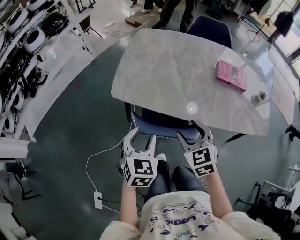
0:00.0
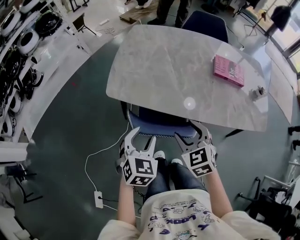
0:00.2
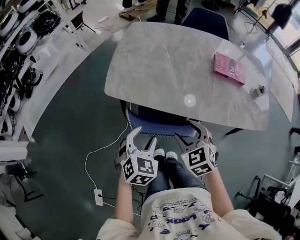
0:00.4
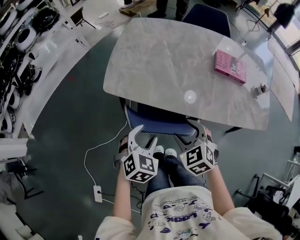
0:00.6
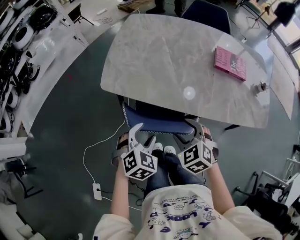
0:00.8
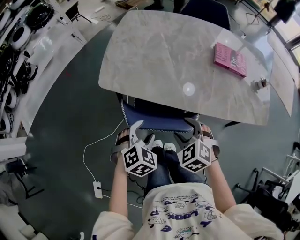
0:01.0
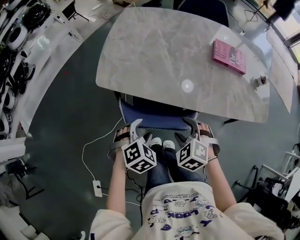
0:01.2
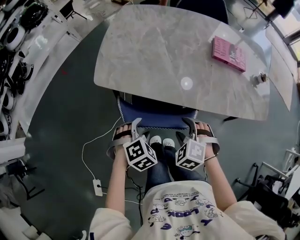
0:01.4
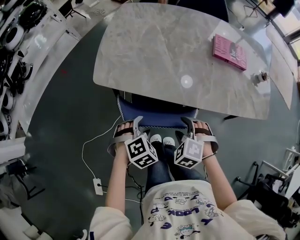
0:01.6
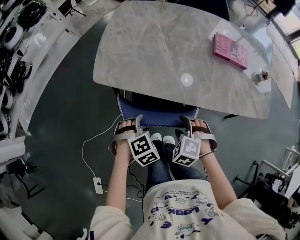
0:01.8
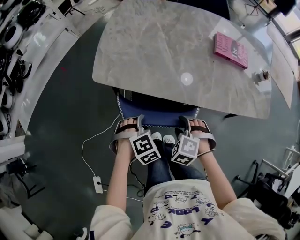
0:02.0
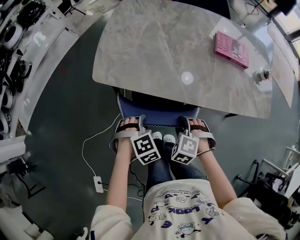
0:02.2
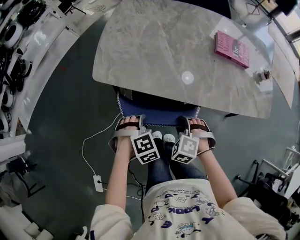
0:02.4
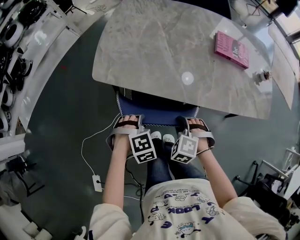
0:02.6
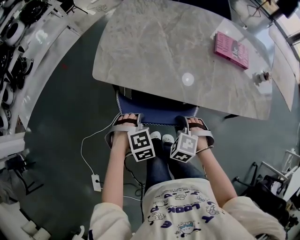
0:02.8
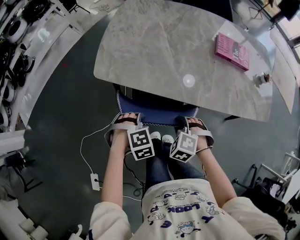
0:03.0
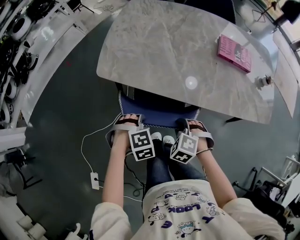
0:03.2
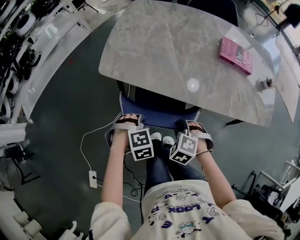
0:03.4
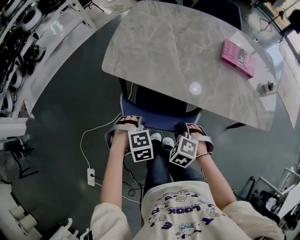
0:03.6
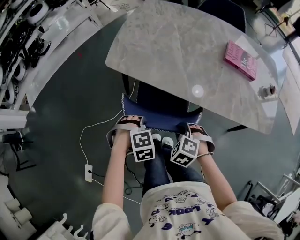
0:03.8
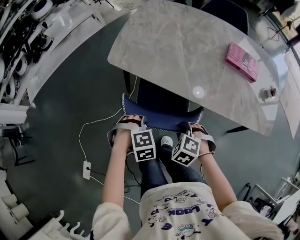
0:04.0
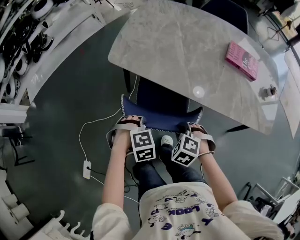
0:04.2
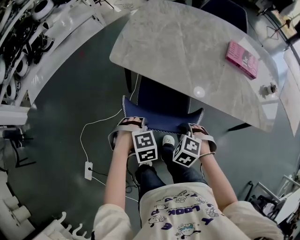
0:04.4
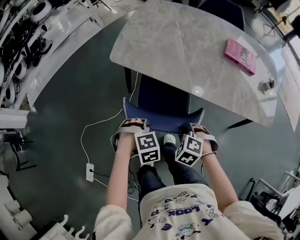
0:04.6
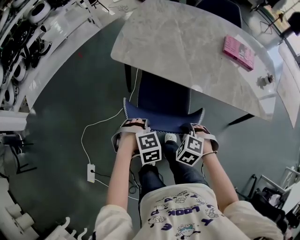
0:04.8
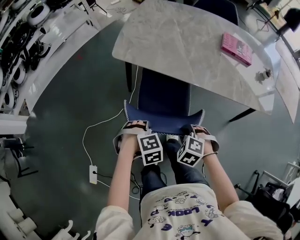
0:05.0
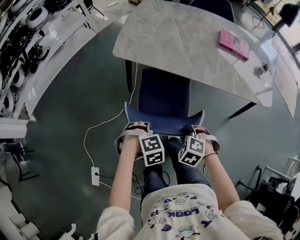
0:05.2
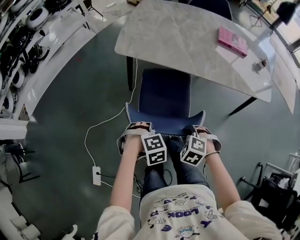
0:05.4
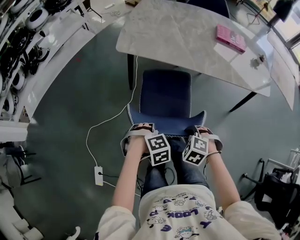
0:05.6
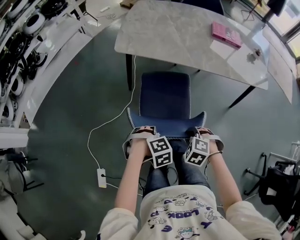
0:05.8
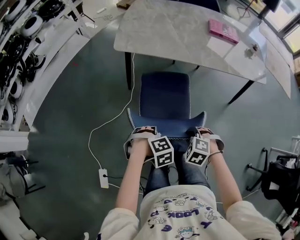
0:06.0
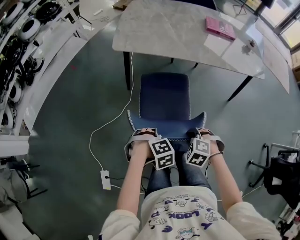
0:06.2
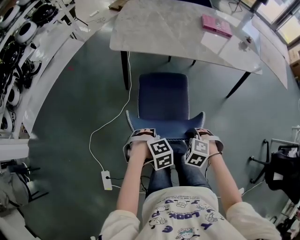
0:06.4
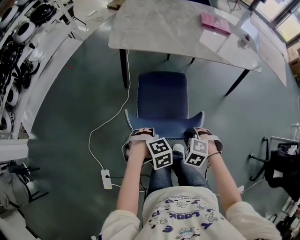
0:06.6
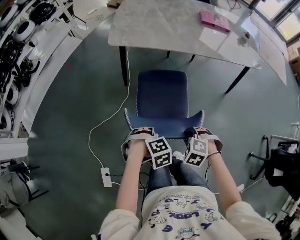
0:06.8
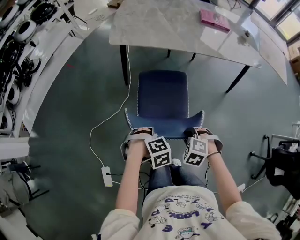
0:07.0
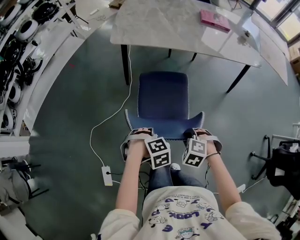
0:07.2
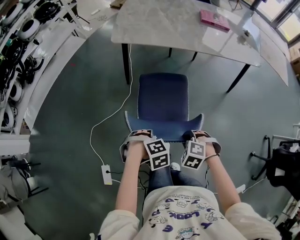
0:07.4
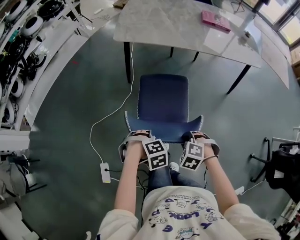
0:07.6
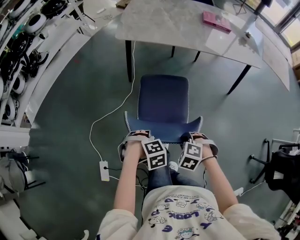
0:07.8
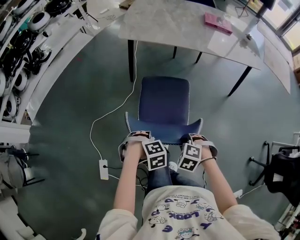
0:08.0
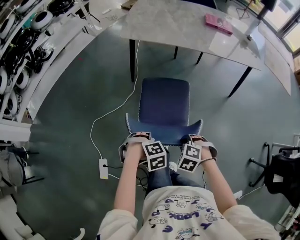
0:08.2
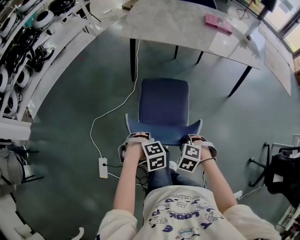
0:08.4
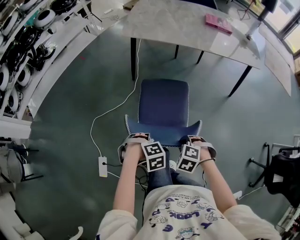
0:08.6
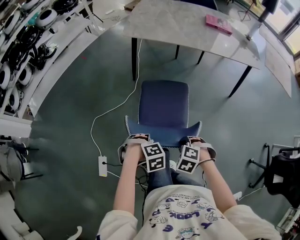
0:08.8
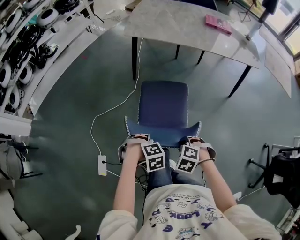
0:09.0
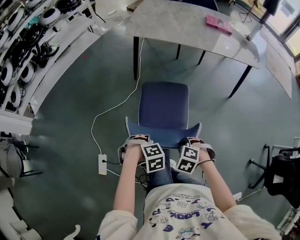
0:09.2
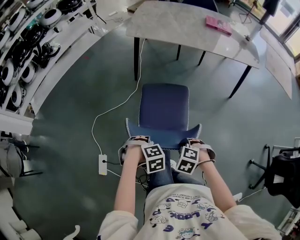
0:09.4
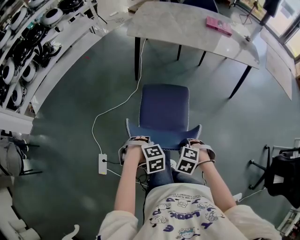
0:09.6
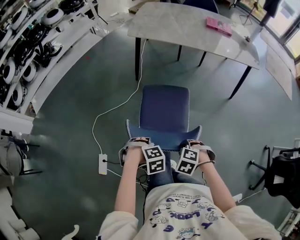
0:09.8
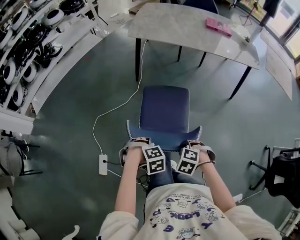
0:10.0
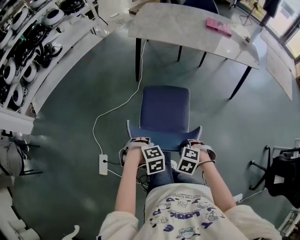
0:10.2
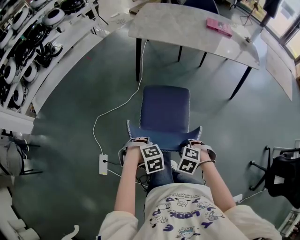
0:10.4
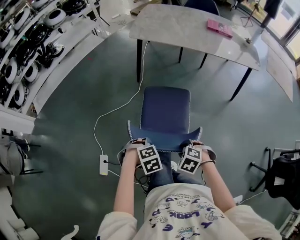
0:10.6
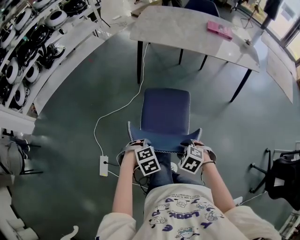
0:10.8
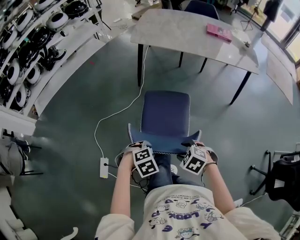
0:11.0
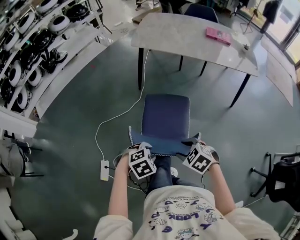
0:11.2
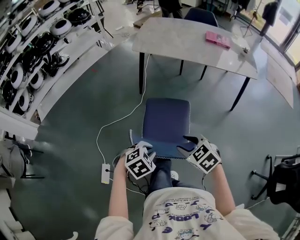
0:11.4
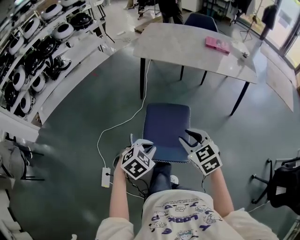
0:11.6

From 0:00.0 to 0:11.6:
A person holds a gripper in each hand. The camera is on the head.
From 0:00.0 to 0:01.4: Both grippers travel together downward, about 15 cm. The left gripper rotates roughly 50 degrees. Meanwhile the right gripper rotates approximately 40 degrees.
From 0:01.4 to 0:02.8: The right gripper closes up, while the left gripper turns by approximately 20 degrees, and closes its fingers.
From 0:02.8 to 0:04.4: The left gripper shifts by approximately 10 cm. The right gripper ends up roughly 10 cm from where it was.
From 0:04.4 to 0:05.8: The left gripper ends up approximately 20 cm from where it was; the right gripper changes place by about 25 cm.
From 0:05.8 to 0:07.2: The left gripper moves approximately 10 cm. Meanwhile the right gripper shifts by approximately 10 cm.
From 0:07.2 to 0:08.8: The left gripper changes place by about 15 cm. The right gripper ends up some 15 cm from where it was.
From 0:08.8 to 0:10.2: The left gripper moves approximately 5 cm. The right gripper shifts by some 5 cm.
From 0:10.2 to 0:11.6: The grippers both shift upward by roughly 15 cm. The right gripper tilts its fingers about 40 degrees upward; the left gripper tilts its fingers some 30 degrees upward.

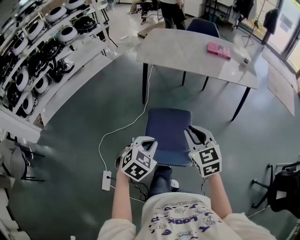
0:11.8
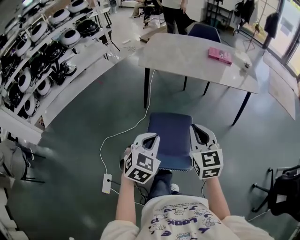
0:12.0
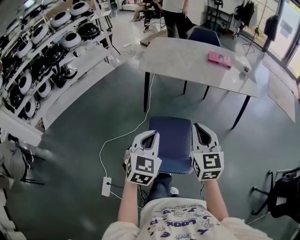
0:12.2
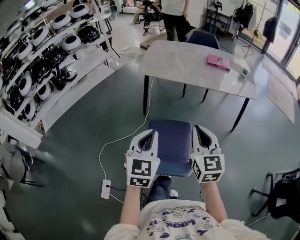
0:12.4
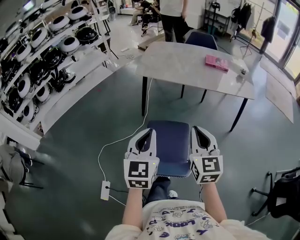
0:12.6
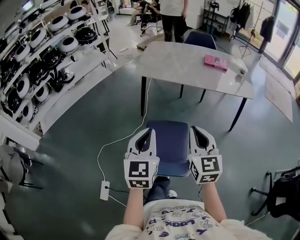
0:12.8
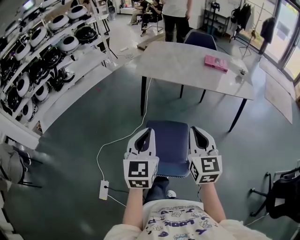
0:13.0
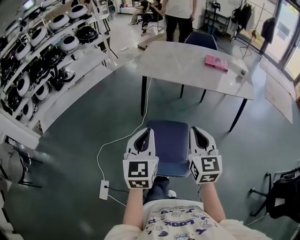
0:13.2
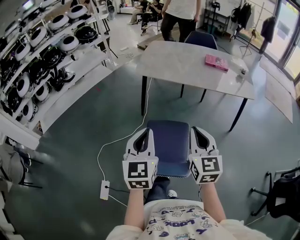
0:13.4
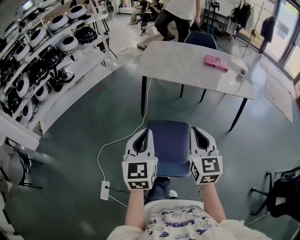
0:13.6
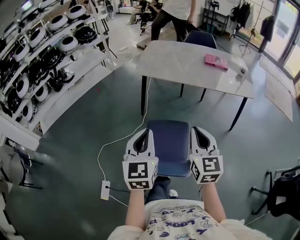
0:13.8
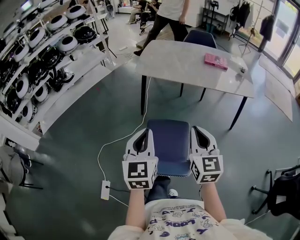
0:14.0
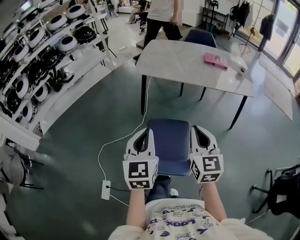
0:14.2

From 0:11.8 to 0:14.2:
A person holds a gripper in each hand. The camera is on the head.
From 0:11.8 to 0:13.0: The left gripper moves upward, about 15 cm, and points its fingers about 40 degrees further upward, while the right gripper moves upward, about 10 cm, and changes its angle by approximately 20 degrees.
From 0:13.0 to 0:14.2: The grippers move only a little.

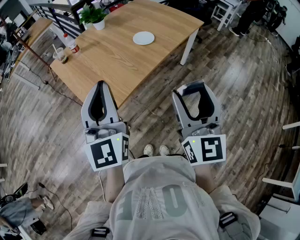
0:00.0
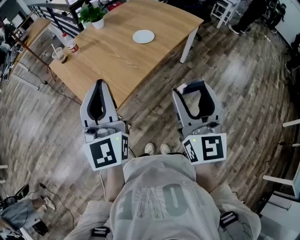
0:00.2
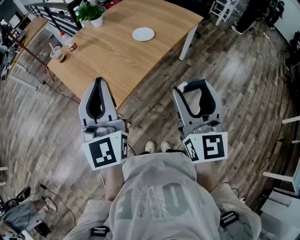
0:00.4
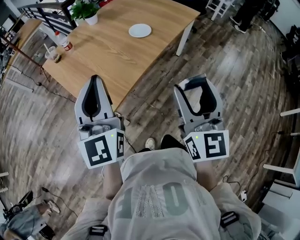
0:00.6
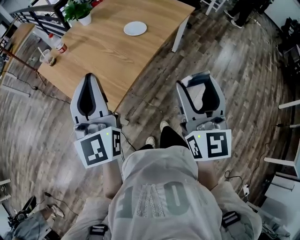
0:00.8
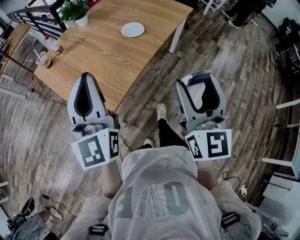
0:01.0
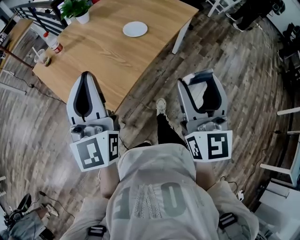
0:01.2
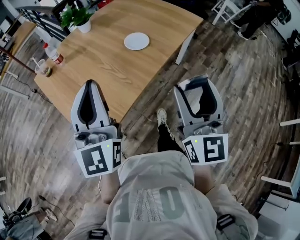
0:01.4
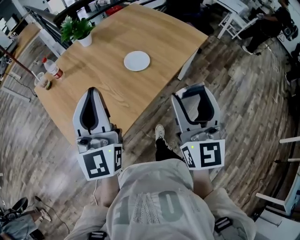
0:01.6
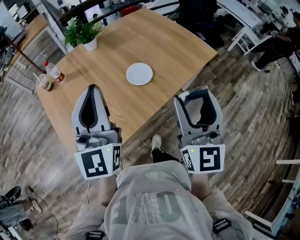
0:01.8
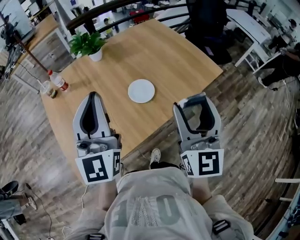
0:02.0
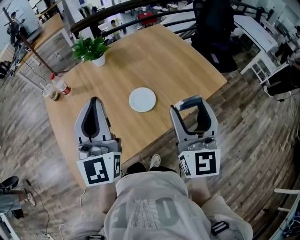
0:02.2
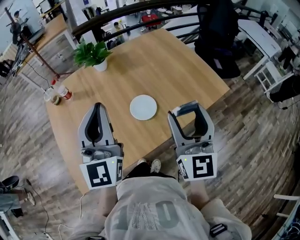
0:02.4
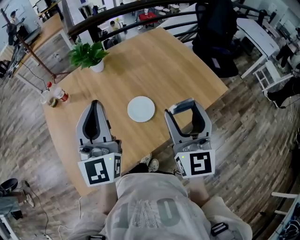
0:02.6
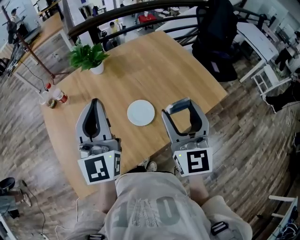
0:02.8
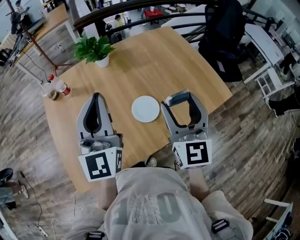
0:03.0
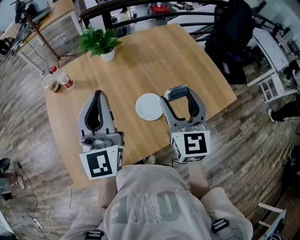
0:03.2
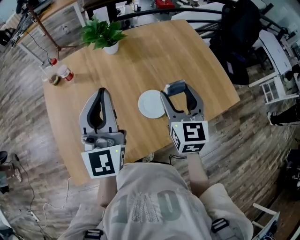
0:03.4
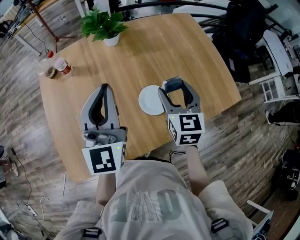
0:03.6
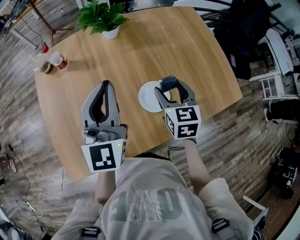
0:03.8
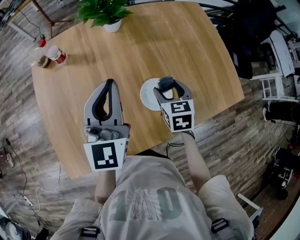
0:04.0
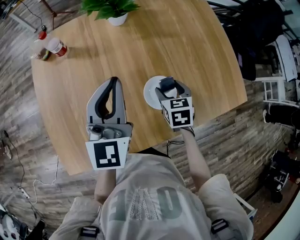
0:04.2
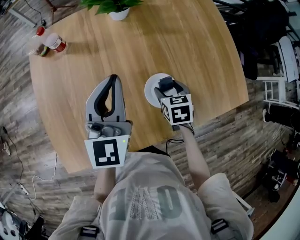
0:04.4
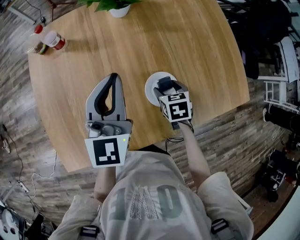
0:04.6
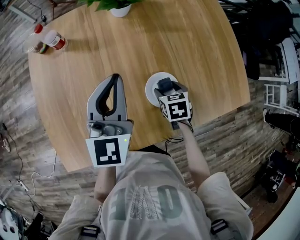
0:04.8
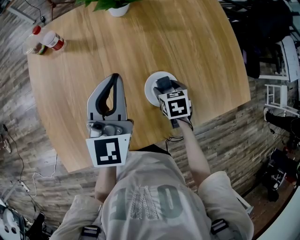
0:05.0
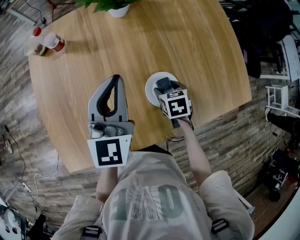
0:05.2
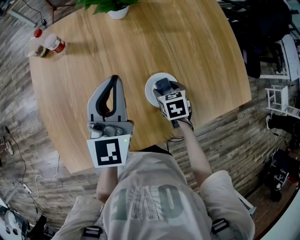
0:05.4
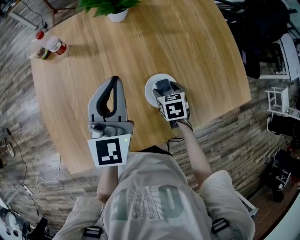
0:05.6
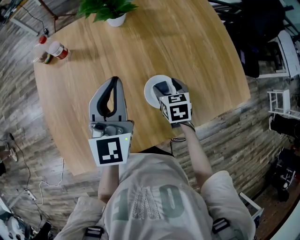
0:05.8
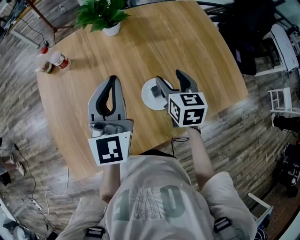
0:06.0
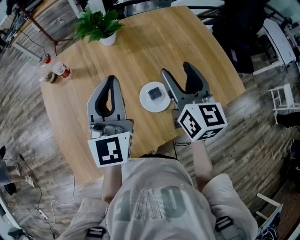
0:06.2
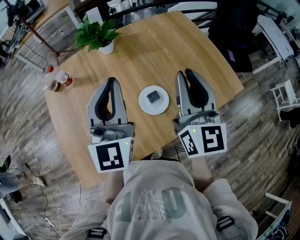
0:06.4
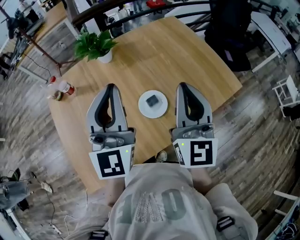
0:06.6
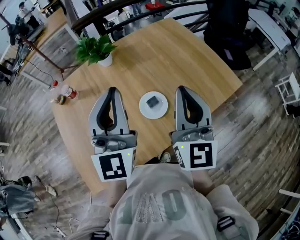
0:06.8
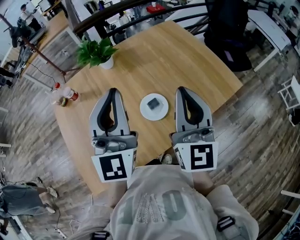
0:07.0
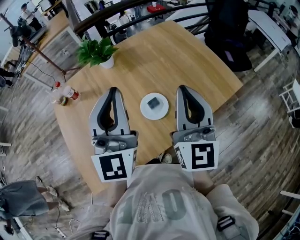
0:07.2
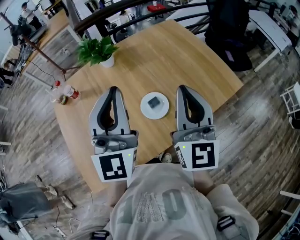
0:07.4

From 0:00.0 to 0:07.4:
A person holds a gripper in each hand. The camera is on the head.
From 0:00.0 to 0:01.4: Both grippers travel together forward, approximately 15 cm.
From 0:01.4 to 0:03.0: The grippers both shift forward by about 30 cm. The right gripper swivels roughly 30 degrees. Meanwhile the left gripper swivels approximately 20 degrees.
From 0:03.0 to 0:04.4: The left gripper travels downward and forward by roughly 15 cm; the right gripper heads downward, covering approximately 30 cm, and points its fingers about 50 degrees further downward.
From 0:04.4 to 0:06.0: The right gripper shifts about 10 cm upward, and turns by roughly 20 degrees.
From 0:06.0 to 0:07.4: The right gripper heads upward and backward, covering some 25 cm, angles its fingers upward, by approximately 40 degrees, and closes its fingers; the left gripper heads upward, to the right and backward, covering approximately 15 cm, and turns by approximately 20 degrees.

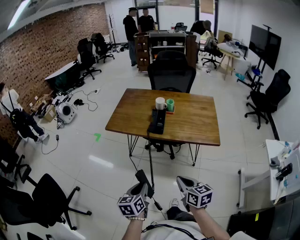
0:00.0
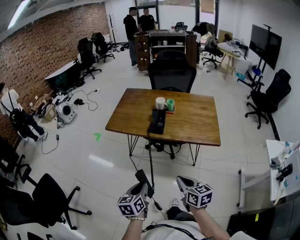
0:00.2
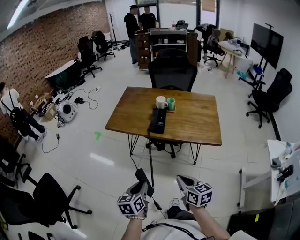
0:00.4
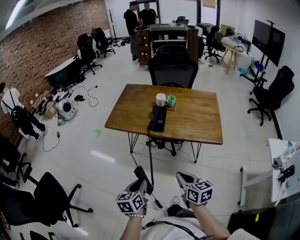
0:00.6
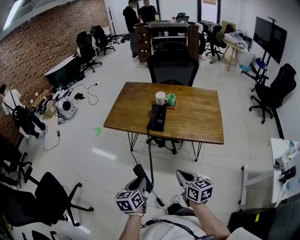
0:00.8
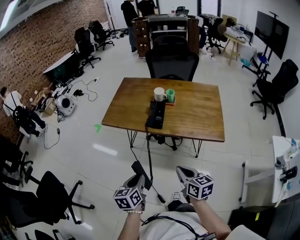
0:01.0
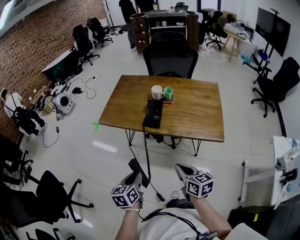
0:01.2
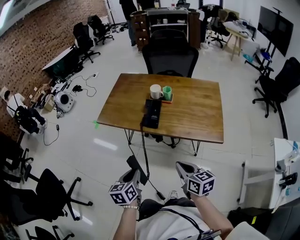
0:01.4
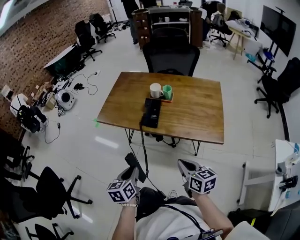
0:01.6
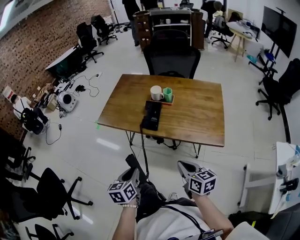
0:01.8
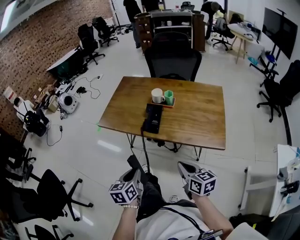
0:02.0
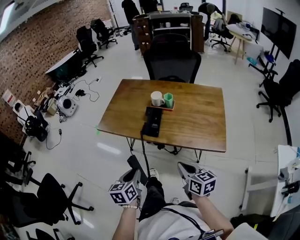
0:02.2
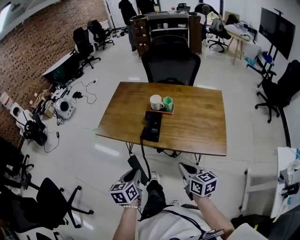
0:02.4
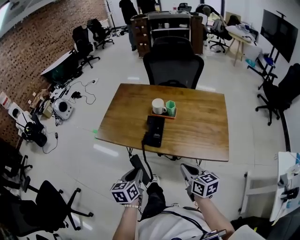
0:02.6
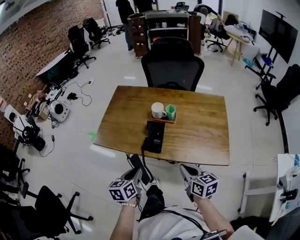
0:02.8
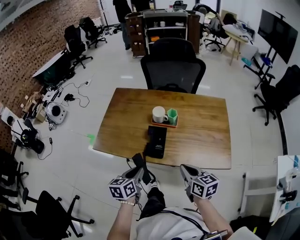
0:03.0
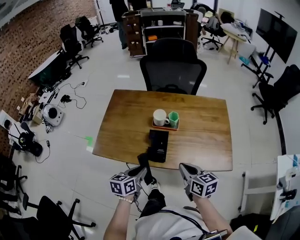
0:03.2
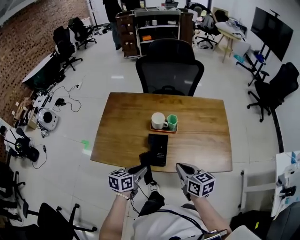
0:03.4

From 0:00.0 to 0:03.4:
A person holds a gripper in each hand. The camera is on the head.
From 0:00.0 to 0:01.6: The right gripper travels forward and to the right by some 15 cm; the left gripper moves forward, roughly 10 cm.
From 0:01.6 to 0:03.4: The left gripper moves some 25 cm, and changes its angle by some 40 degrees. Meanwhile the right gripper changes place by approximately 25 cm.
